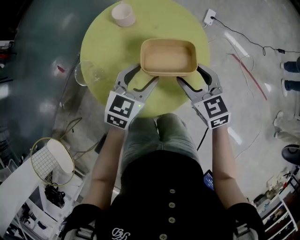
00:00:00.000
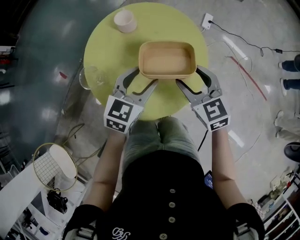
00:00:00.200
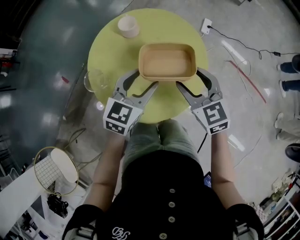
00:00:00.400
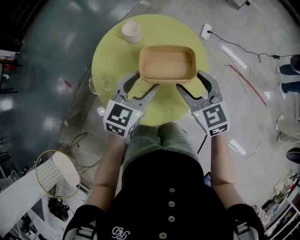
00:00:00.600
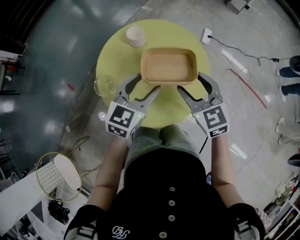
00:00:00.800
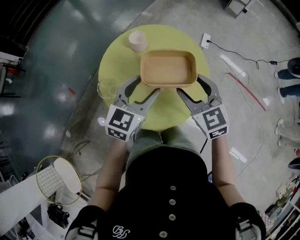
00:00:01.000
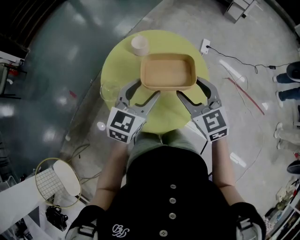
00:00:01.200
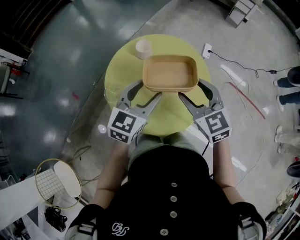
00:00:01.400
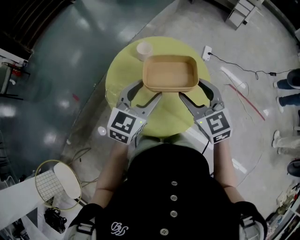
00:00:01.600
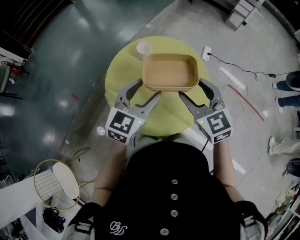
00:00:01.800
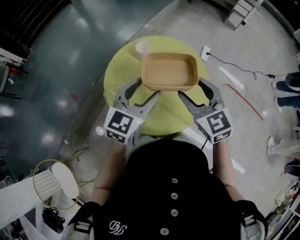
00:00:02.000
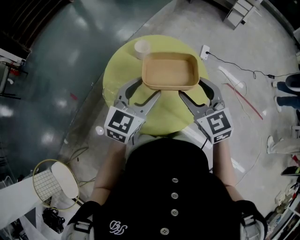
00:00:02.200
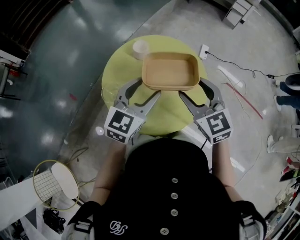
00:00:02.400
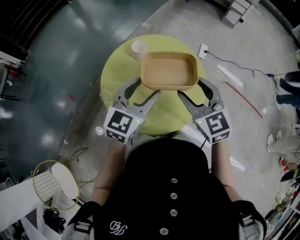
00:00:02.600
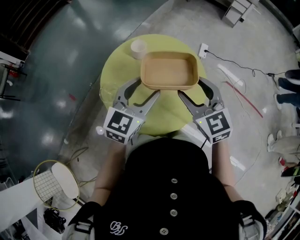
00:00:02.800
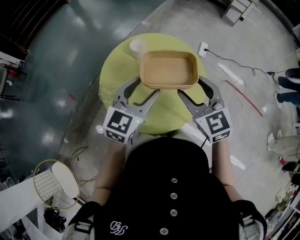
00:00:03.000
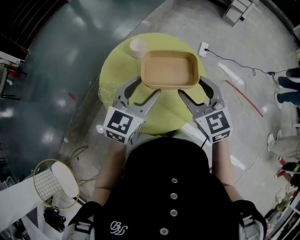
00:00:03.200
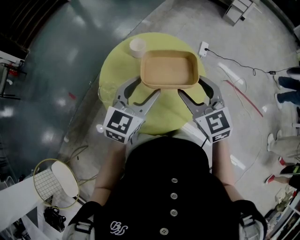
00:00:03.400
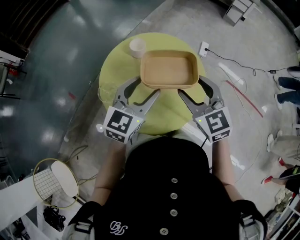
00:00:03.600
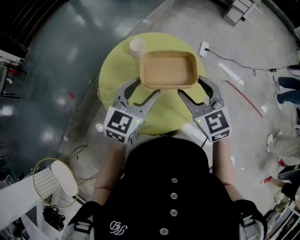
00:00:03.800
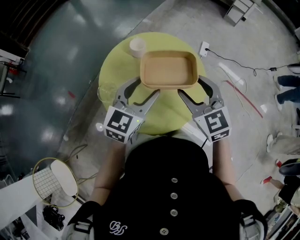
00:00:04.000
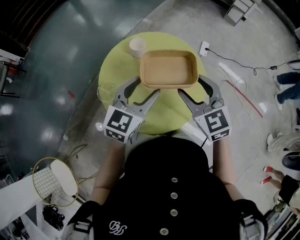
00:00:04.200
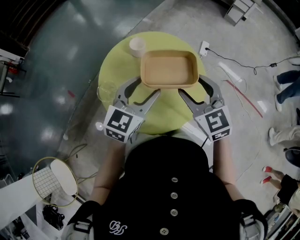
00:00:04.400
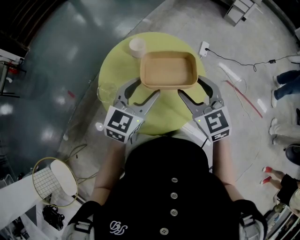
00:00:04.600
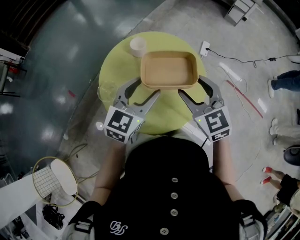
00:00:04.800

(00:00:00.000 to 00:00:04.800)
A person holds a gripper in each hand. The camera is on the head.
00:00:00.000 - 00:00:01.600: The grippers both shift upward and to the left by some 15 cm.
00:00:01.600 - 00:00:04.800: The grippers move only a little.

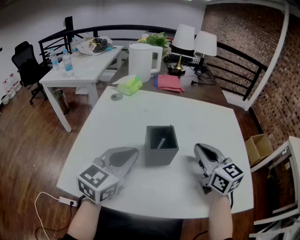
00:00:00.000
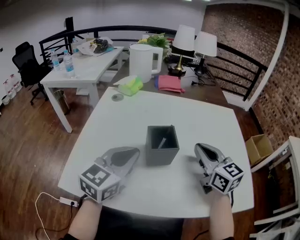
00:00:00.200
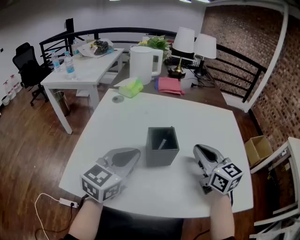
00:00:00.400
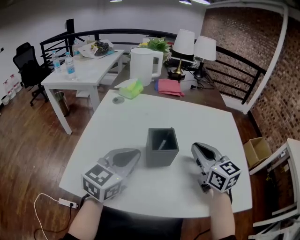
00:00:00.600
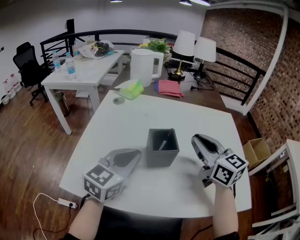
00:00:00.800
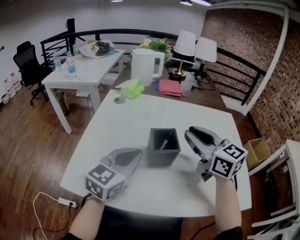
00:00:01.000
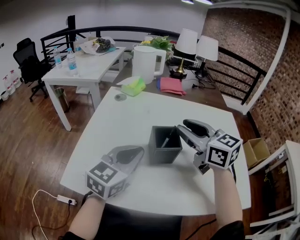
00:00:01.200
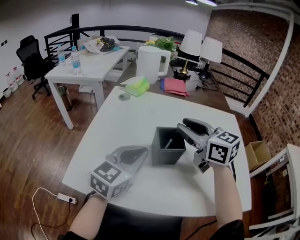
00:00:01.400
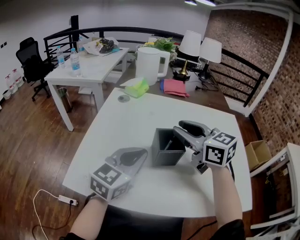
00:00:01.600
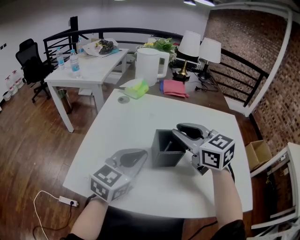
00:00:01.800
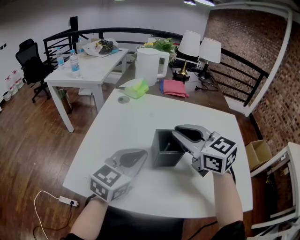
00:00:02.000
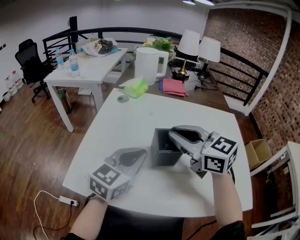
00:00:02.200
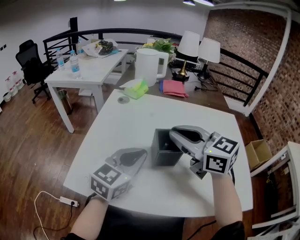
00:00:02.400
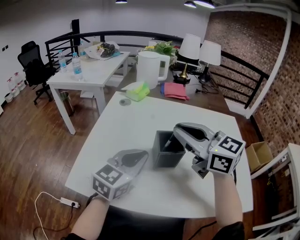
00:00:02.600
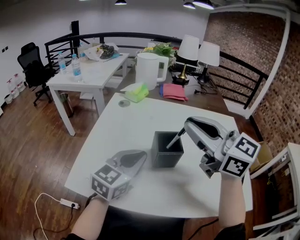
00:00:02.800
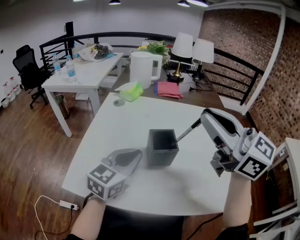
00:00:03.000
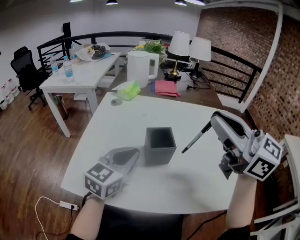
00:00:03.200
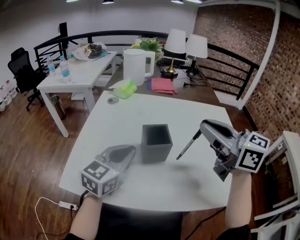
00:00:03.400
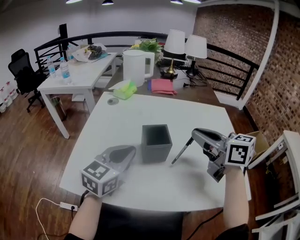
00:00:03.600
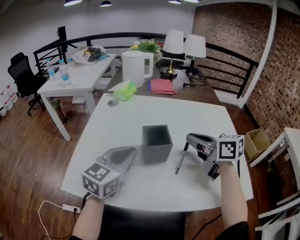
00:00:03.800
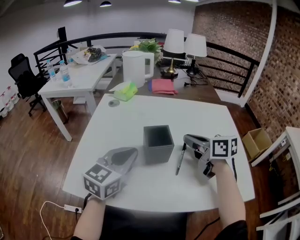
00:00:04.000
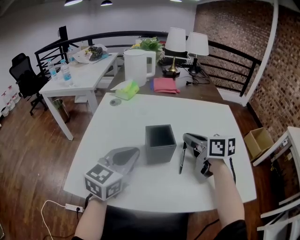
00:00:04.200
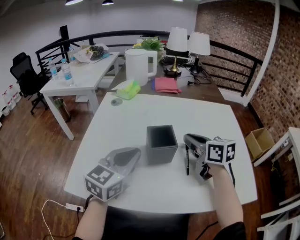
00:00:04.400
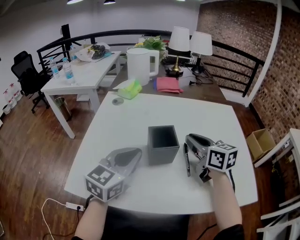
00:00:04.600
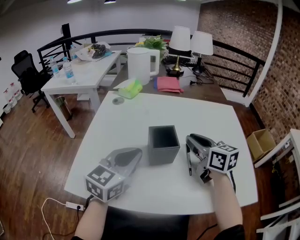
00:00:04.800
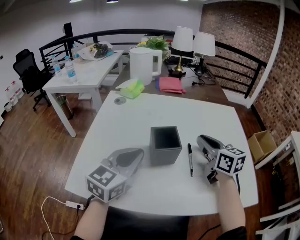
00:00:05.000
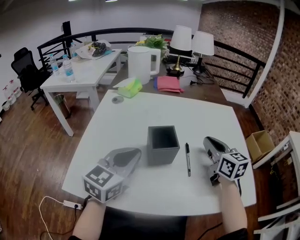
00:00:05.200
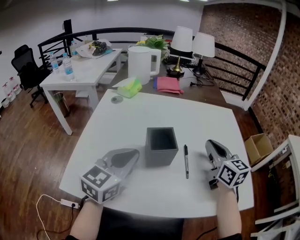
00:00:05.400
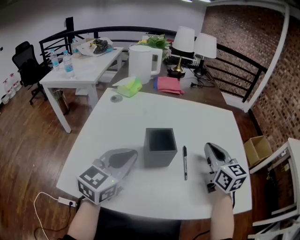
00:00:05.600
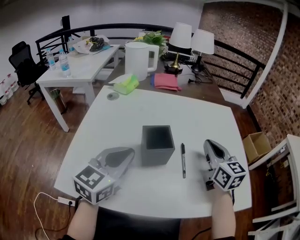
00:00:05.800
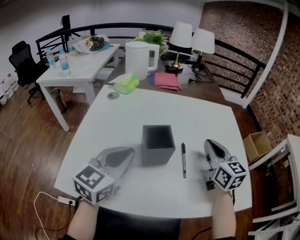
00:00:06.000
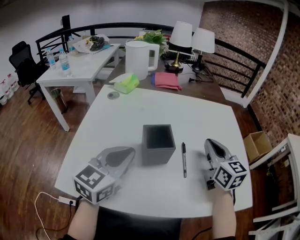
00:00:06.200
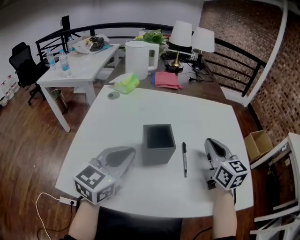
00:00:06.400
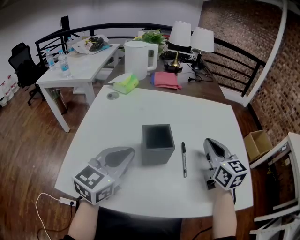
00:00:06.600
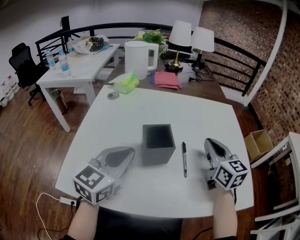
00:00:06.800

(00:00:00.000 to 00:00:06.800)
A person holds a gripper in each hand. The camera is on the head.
00:00:00.000 - 00:00:01.400: The right gripper moves to the left and upward, roughly 10 cm, and opens up.
00:00:01.400 - 00:00:02.800: The right gripper is displaced upward and backward by roughly 10 cm, and closes up.
00:00:02.800 - 00:00:04.000: The right gripper shifts about 20 cm downward and to the right, and swivels about 40 degrees.
00:00:04.000 - 00:00:05.400: The right gripper moves to the right, roughly 5 cm, and turns by approximately 30 degrees.
00:00:05.400 - 00:00:06.800: The grippers move only a little.

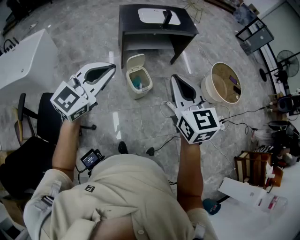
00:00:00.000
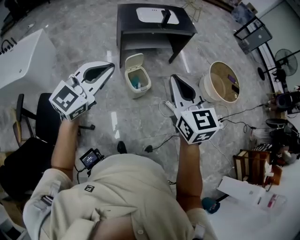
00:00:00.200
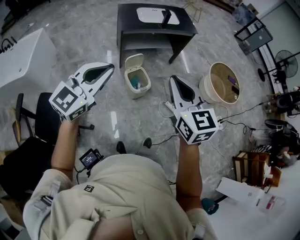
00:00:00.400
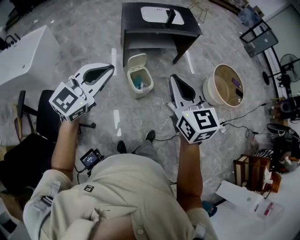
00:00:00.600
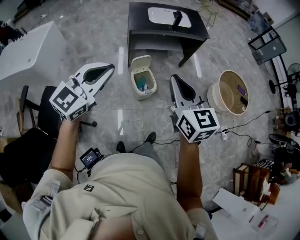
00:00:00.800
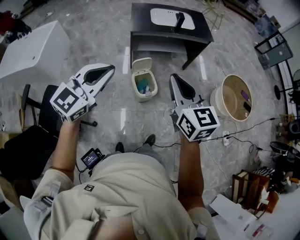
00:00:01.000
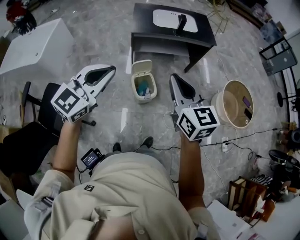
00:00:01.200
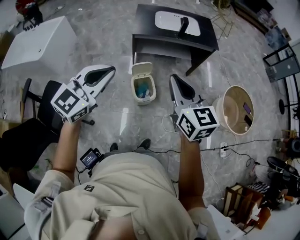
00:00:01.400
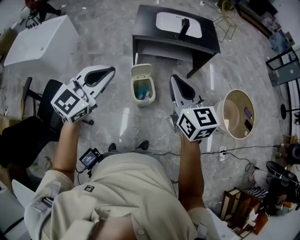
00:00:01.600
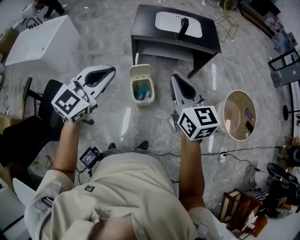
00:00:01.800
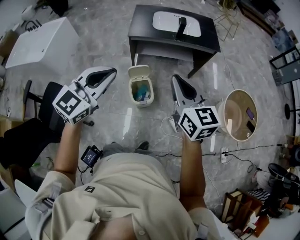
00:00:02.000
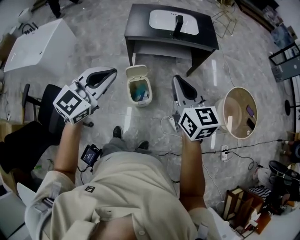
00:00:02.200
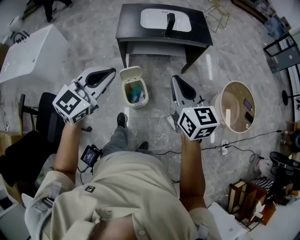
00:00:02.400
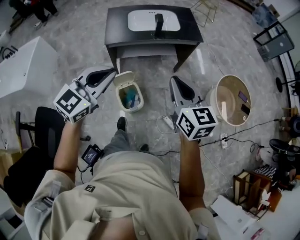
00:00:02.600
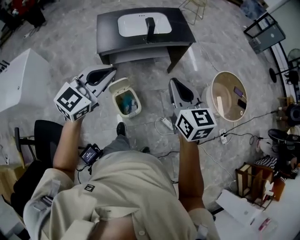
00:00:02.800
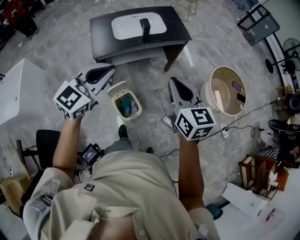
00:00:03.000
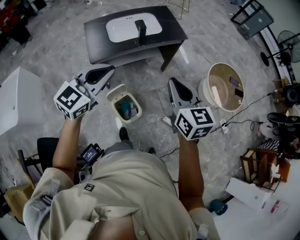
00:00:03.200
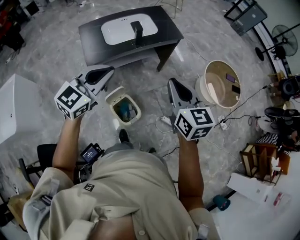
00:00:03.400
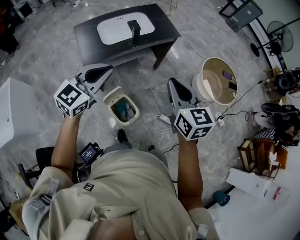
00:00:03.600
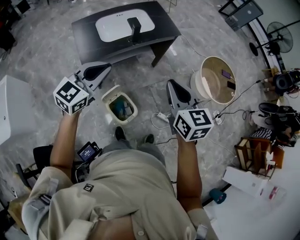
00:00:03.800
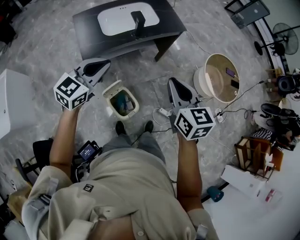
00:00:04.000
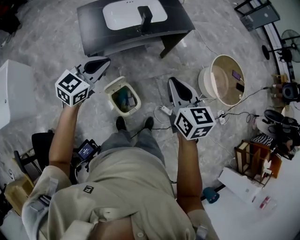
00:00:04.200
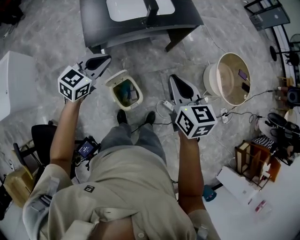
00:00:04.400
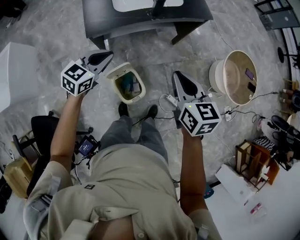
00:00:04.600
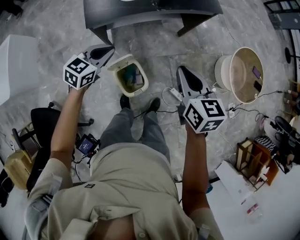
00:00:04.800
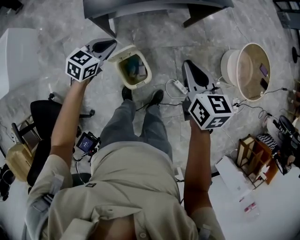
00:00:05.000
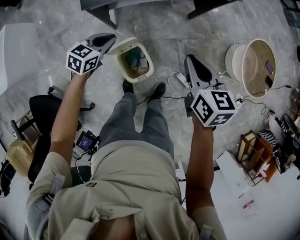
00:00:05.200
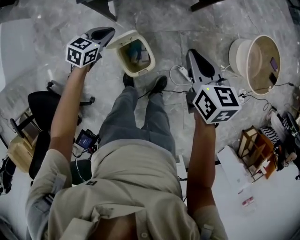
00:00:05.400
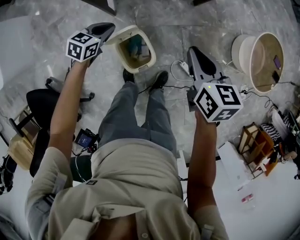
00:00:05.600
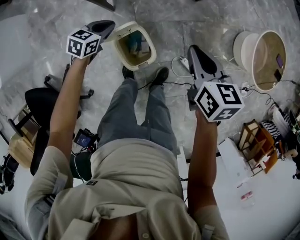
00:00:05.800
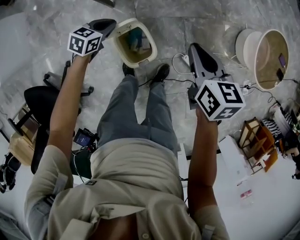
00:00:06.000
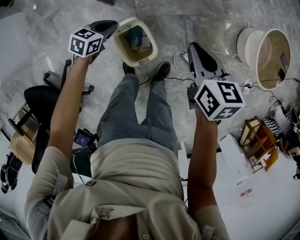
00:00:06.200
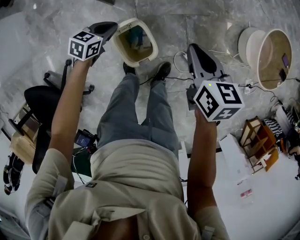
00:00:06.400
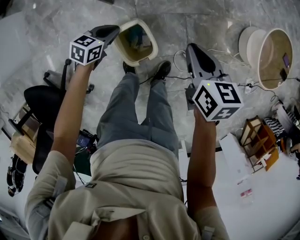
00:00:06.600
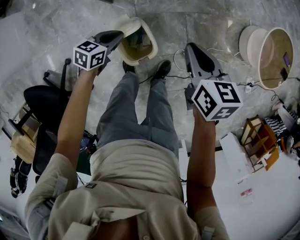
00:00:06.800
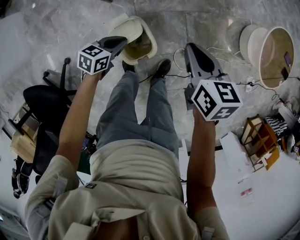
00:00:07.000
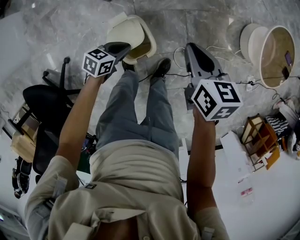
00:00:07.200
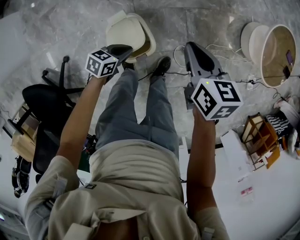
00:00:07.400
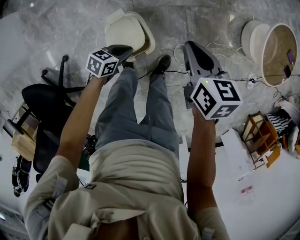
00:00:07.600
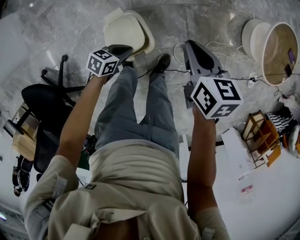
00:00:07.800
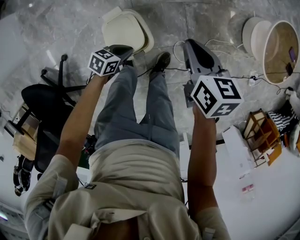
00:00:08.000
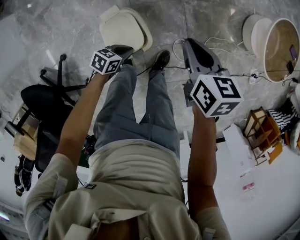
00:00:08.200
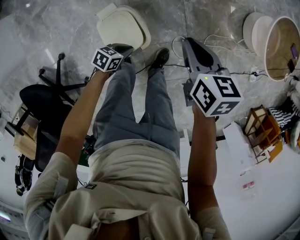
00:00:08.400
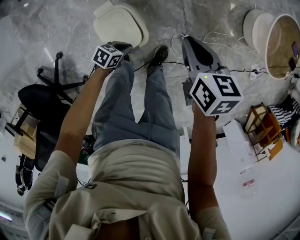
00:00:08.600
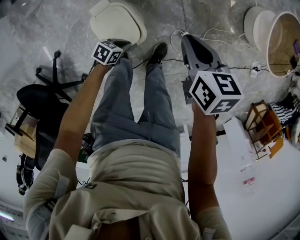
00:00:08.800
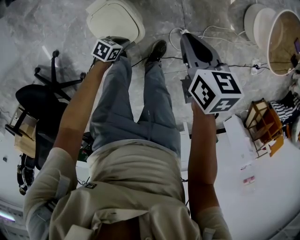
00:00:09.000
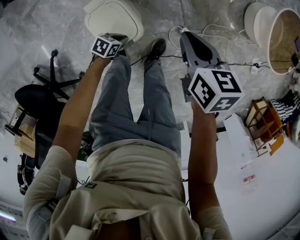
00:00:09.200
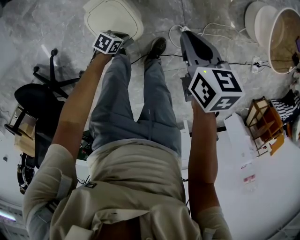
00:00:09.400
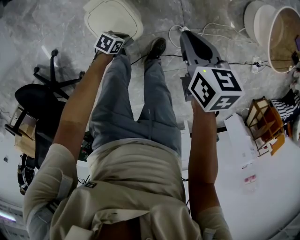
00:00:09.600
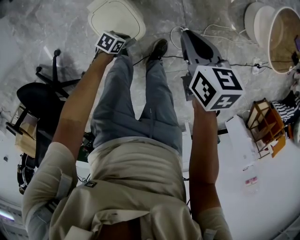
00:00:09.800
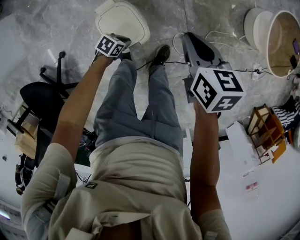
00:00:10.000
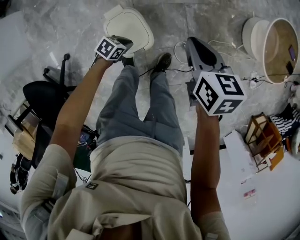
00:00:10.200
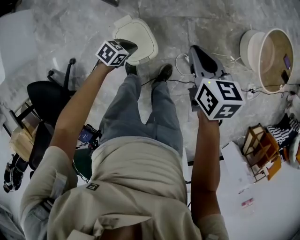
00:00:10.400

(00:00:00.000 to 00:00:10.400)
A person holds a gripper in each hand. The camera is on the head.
00:00:00.000 - 00:00:01.400: The left gripper goes roughly 15 cm forward and to the right; the right gripper travels forward by roughly 20 cm.
00:00:01.400 - 00:00:03.000: The right gripper heads forward and to the right, covering about 20 cm, and turns by approximately 20 degrees. The left gripper shifts approximately 25 cm forward.
00:00:03.000 - 00:00:04.400: The right gripper heads downward, forward and to the left, covering approximately 15 cm, while the left gripper moves downward, forward and to the left, about 25 cm.
00:00:04.400 - 00:00:06.000: The grippers both shift downward by some 35 cm. The left gripper changes its angle by about 30 degrees.
00:00:06.000 - 00:00:07.400: The right gripper travels downward by some 5 cm. The left gripper heads to the right, backward and downward, covering roughly 20 cm.
00:00:07.400 - 00:00:09.000: The right gripper is displaced downward by approximately 10 cm. Meanwhile the left gripper travels downward by approximately 15 cm.
00:00:09.000 - 00:00:10.400: The two grippers go some 15 cm upward.

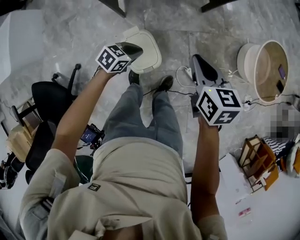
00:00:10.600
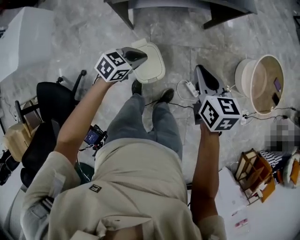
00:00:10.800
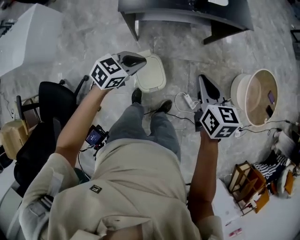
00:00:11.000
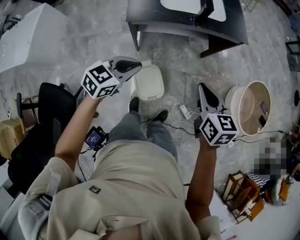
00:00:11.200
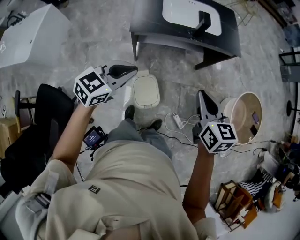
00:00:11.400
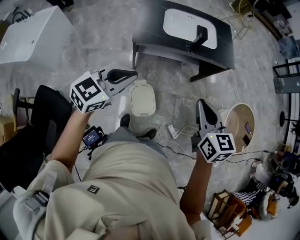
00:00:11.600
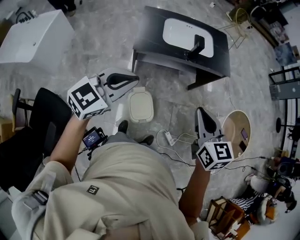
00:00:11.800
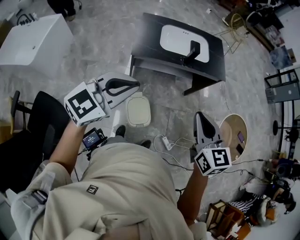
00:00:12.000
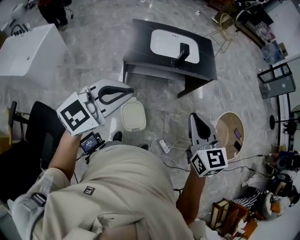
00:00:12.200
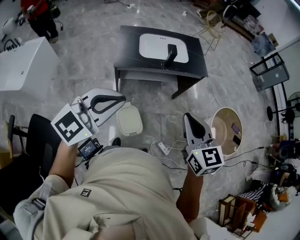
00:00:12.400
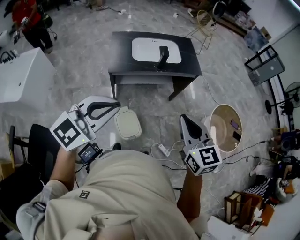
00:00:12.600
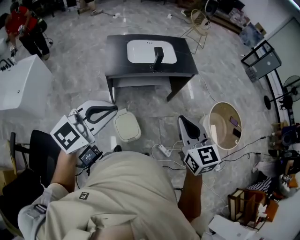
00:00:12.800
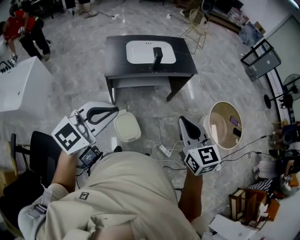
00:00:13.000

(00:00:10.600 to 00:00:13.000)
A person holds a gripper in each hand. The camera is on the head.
00:00:10.600 - 00:00:11.800: The left gripper goes about 50 cm upward, and tips its fingers upward by some 30 degrees. Meanwhile the right gripper is displaced upward by about 30 cm, and swivels about 30 degrees.
00:00:11.800 - 00:00:13.000: The grippers both shift backward, to the right and upward by about 15 cm.
